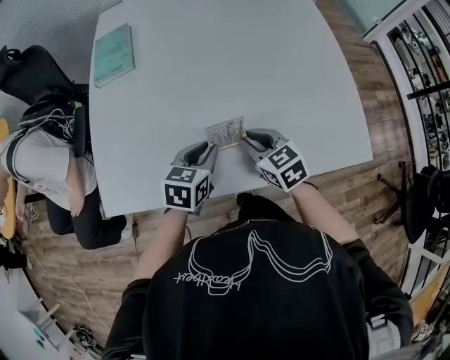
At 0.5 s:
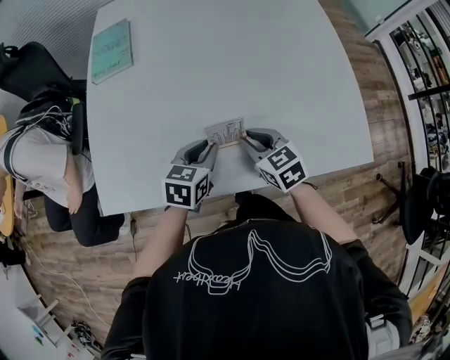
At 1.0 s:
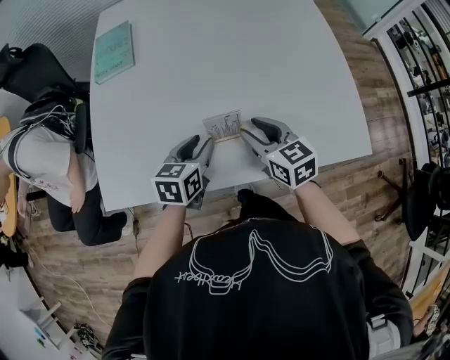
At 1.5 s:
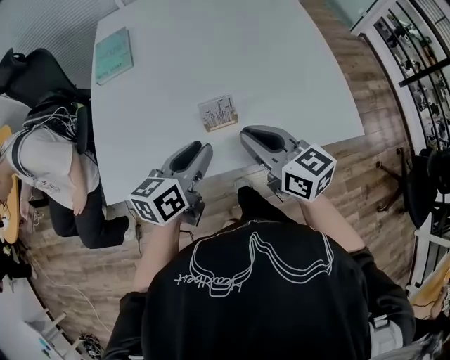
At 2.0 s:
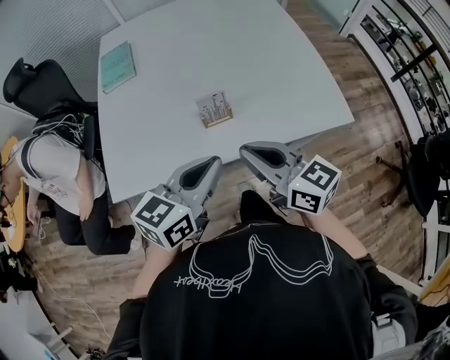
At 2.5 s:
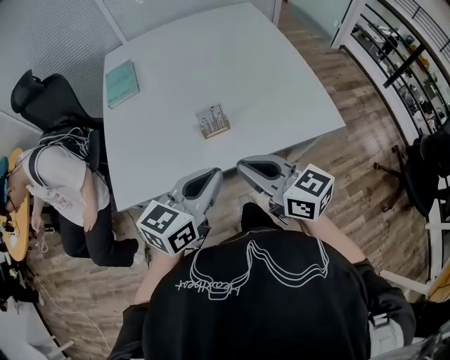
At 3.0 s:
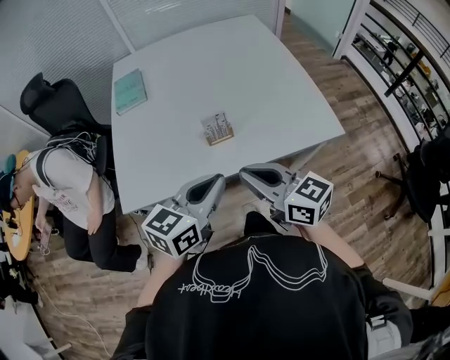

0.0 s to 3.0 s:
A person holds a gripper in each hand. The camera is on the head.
0.0 to 1.5 s: Both grippers travel together upward and backward, about 15 cm. The left gripper turns by about 30 degrees. The right gripper turns by approximately 30 degrees, and opens and closes again.
1.5 to 3.0 s: Both grippers travel together backward and upward, roughly 15 cm. The left gripper rotates roughly 20 degrees, and closes its fingers.

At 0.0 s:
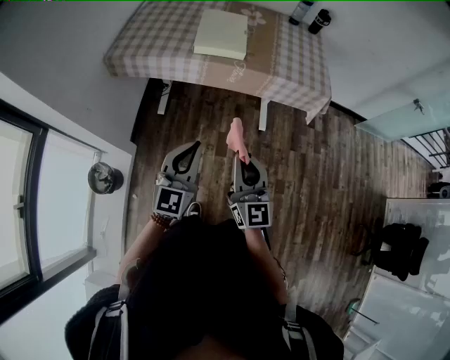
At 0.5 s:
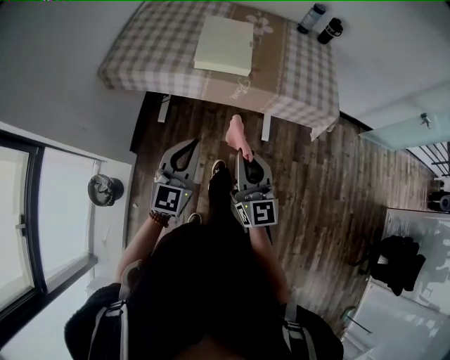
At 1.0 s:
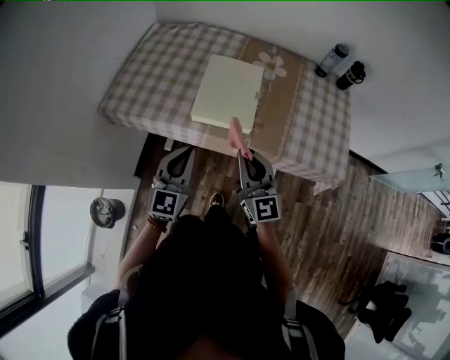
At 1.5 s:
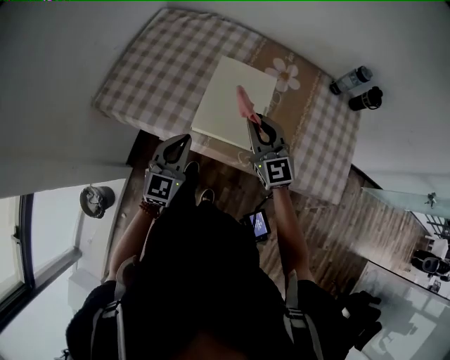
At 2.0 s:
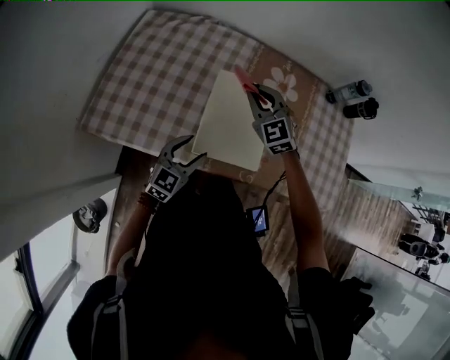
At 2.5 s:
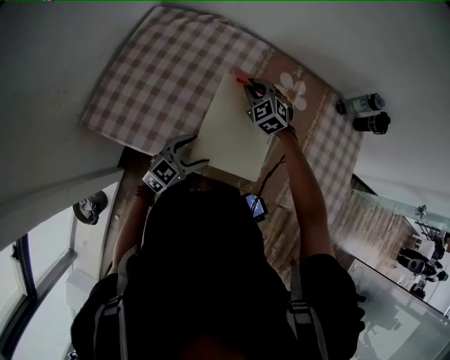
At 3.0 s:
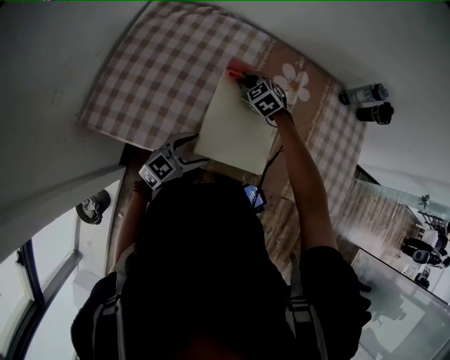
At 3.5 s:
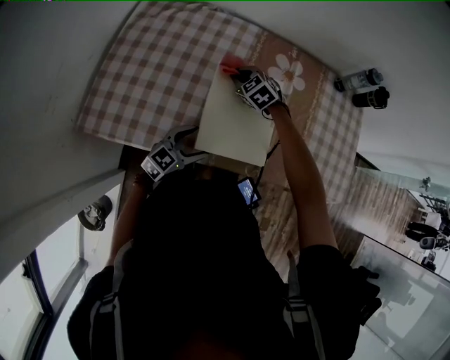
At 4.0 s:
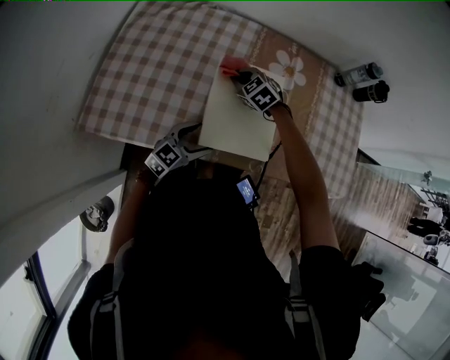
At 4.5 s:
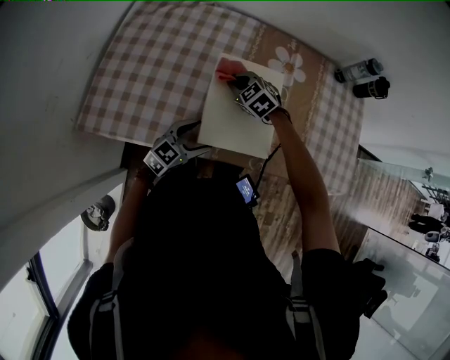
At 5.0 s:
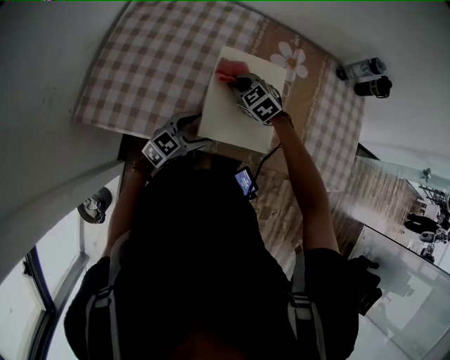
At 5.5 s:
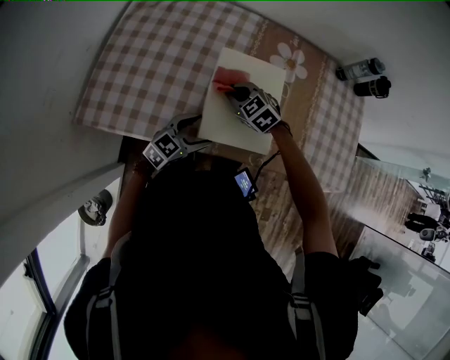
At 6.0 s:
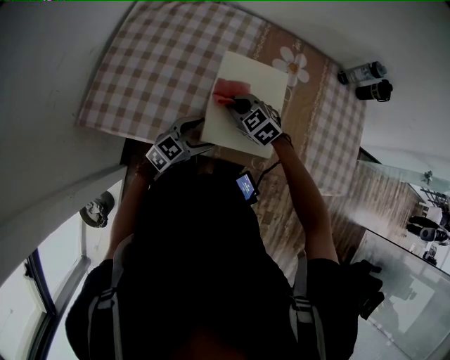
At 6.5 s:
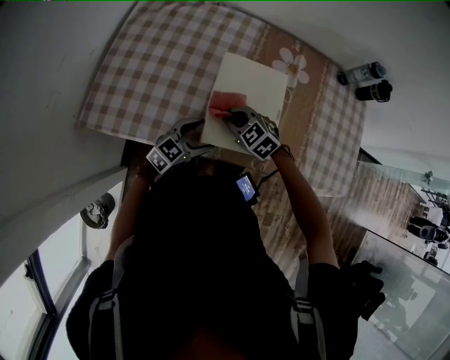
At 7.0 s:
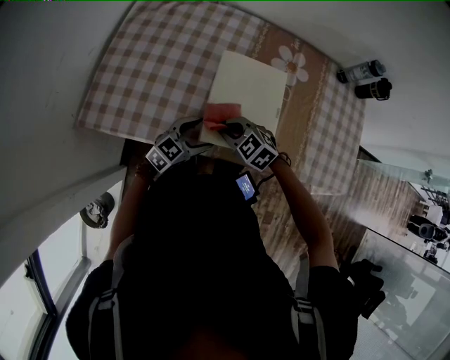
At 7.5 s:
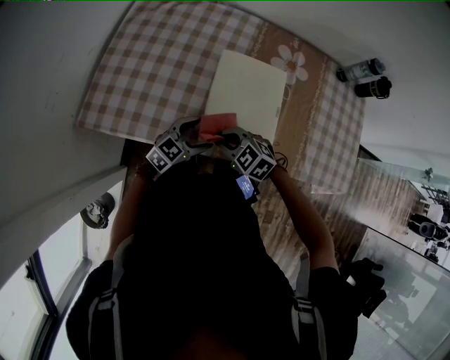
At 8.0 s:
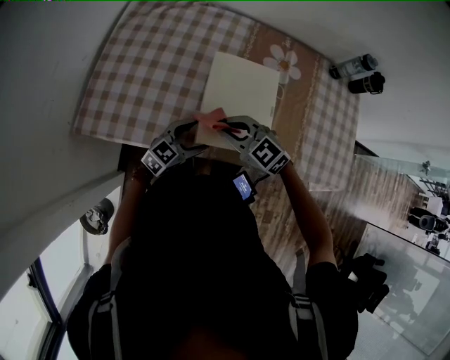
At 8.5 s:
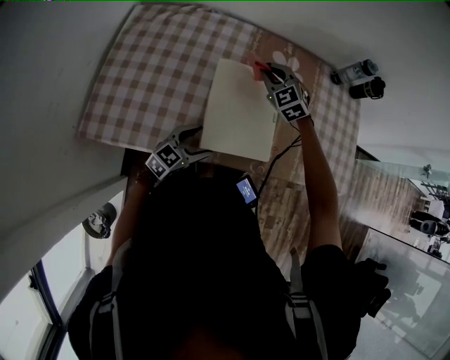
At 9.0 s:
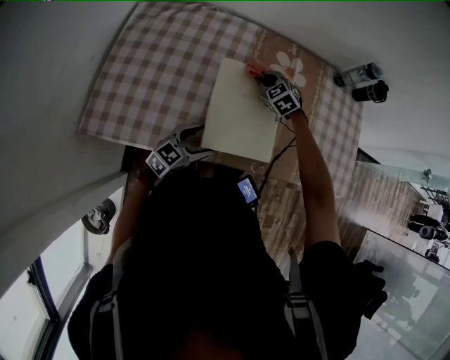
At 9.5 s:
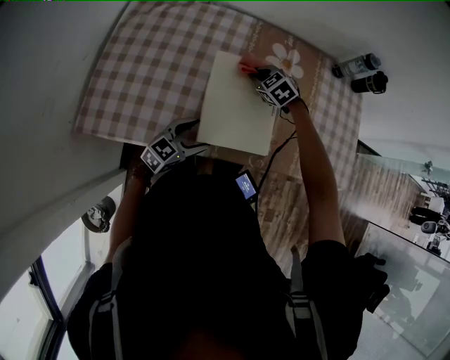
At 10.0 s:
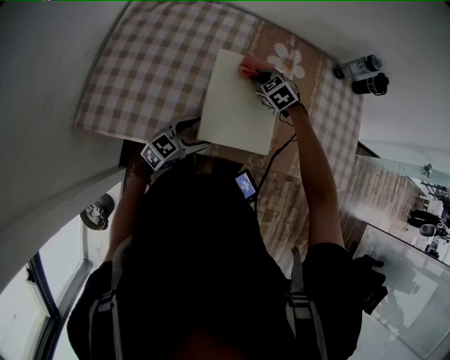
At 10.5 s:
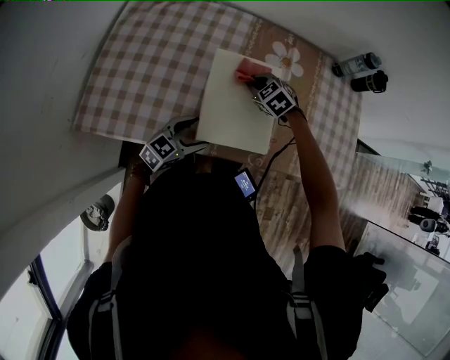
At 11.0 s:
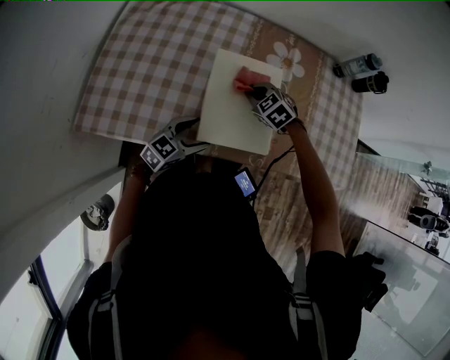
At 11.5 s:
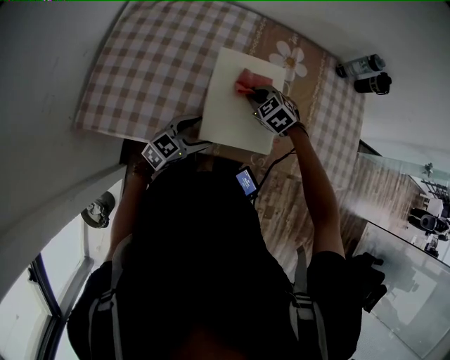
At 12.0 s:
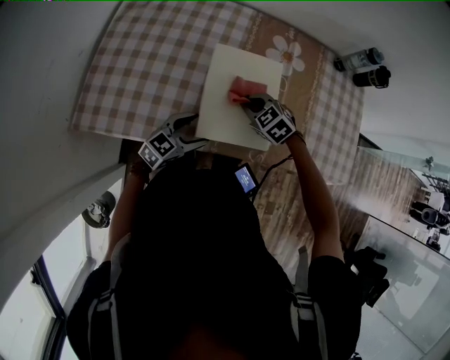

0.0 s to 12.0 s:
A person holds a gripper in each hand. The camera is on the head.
0.0 to 2.0 s: The two grippers travel together, forward, approximately 70 cm. The right gripper swivels approximately 50 degrees, while the left gripper swivels some 20 degrees, and opens its fingers.
2.0 to 4.0 s: The left gripper shifts roughly 5 cm downward, and swivels roughly 20 degrees; the right gripper is displaced downward by roughly 15 cm, and swivels roughly 30 degrees.
4.0 to 6.0 s: The right gripper moves backward, about 10 cm.
6.0 to 8.0 s: The right gripper ends up about 10 cm from where it was.
8.0 to 10.0 s: The right gripper goes roughly 20 cm forward and downward, and rotates roughly 30 degrees.
10.0 to 12.0 s: The right gripper shifts about 10 cm backward.

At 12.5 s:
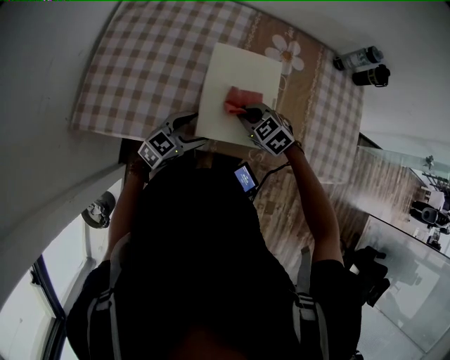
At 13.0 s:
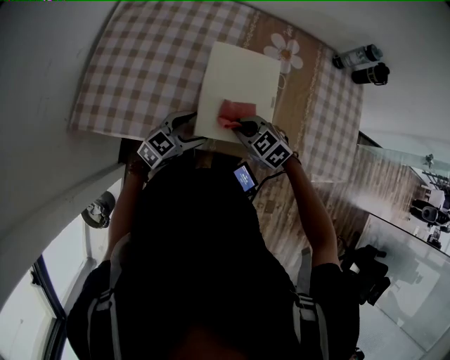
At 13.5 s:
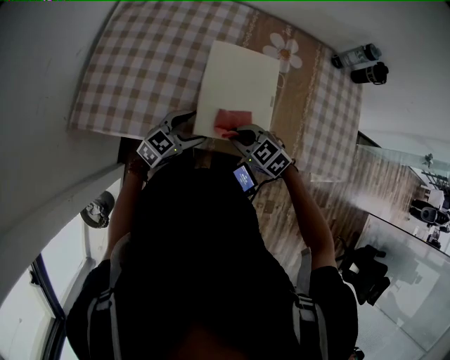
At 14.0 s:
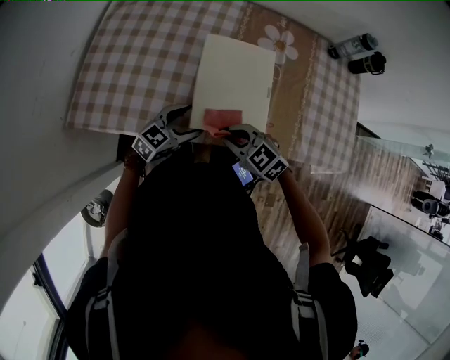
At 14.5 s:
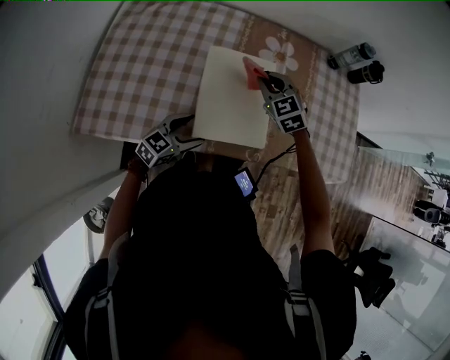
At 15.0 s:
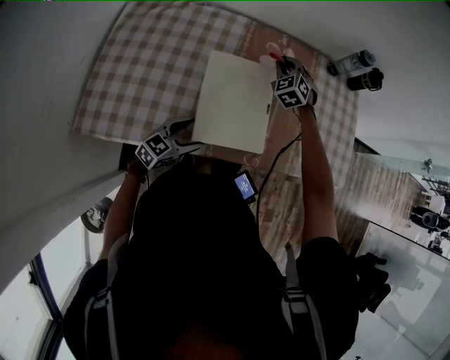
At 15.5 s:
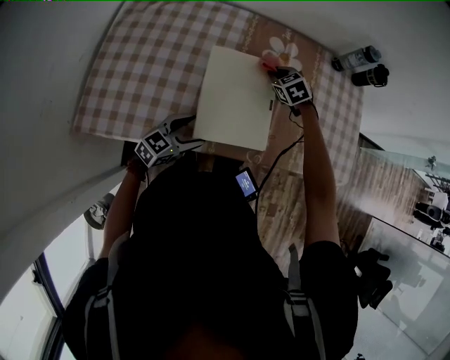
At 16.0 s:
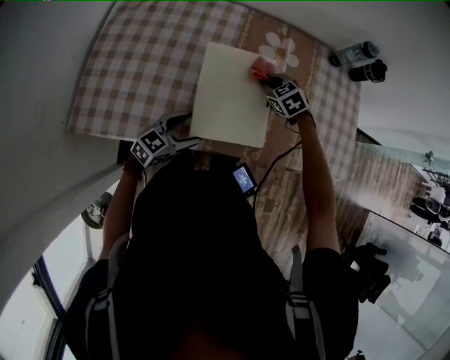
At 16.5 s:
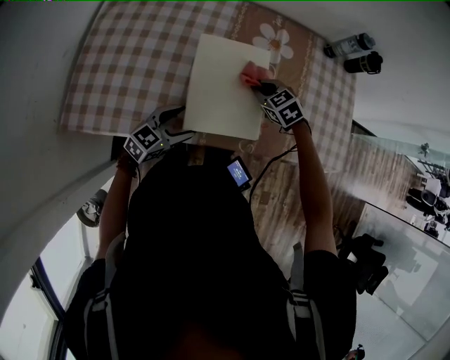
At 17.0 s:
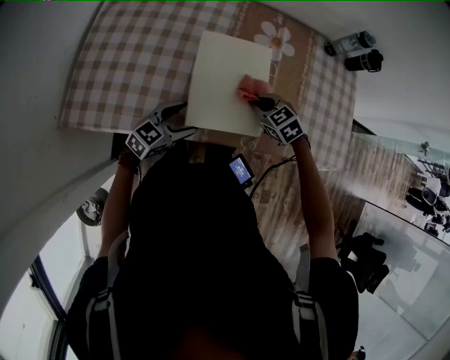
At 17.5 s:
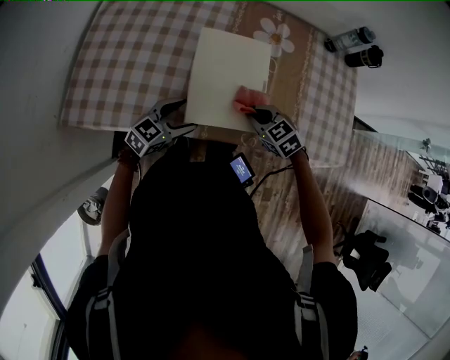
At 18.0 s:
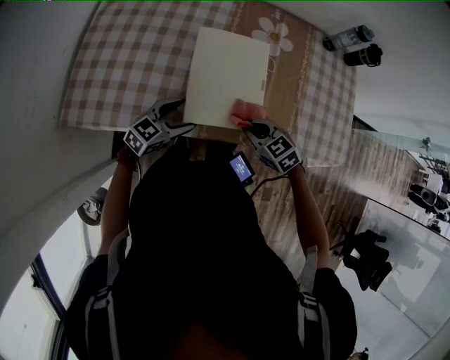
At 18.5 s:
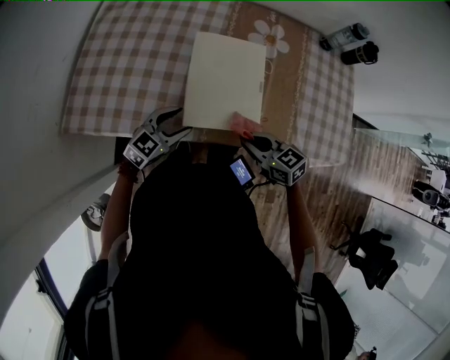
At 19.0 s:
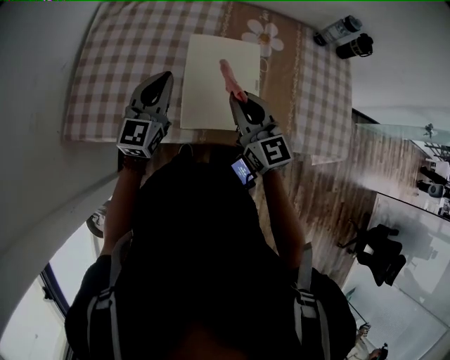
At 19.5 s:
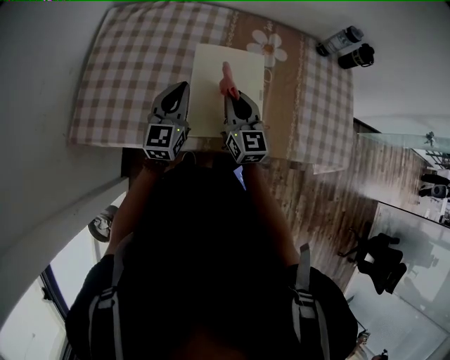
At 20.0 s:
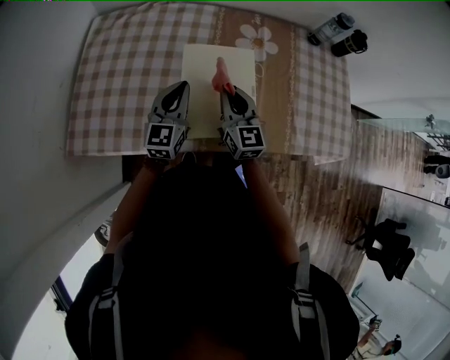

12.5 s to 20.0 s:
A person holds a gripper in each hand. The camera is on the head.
12.5 to 14.5 s: The right gripper is displaced forward and upward by some 15 cm, and turns by roughly 30 degrees.
14.5 to 16.5 s: The right gripper travels downward by some 10 cm, travels forward and back again, roughly 15 cm each way, and turns by some 20 degrees.
16.5 to 18.0 s: The right gripper shifts about 15 cm backward.
18.0 to 20.0 s: The left gripper heads upward and forward, covering roughly 15 cm, rotates some 40 degrees, and closes its fingers; the right gripper shifts about 15 cm forward, upward and to the left, and points its fingers some 40 degrees further upward.

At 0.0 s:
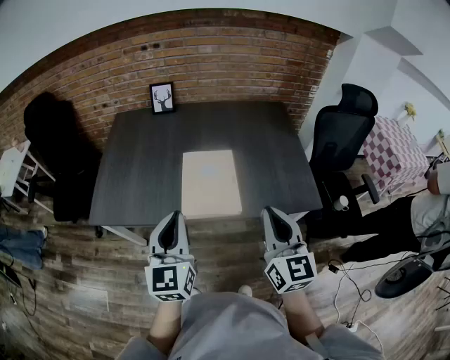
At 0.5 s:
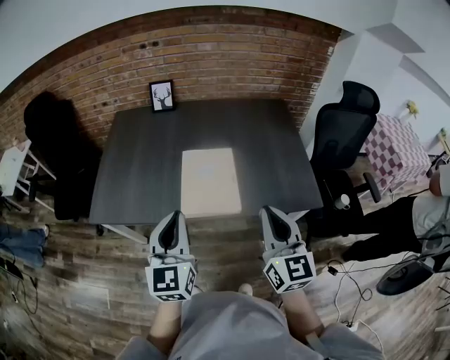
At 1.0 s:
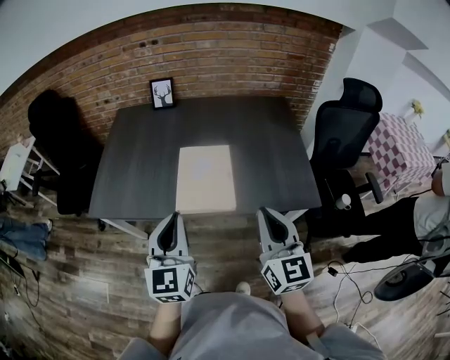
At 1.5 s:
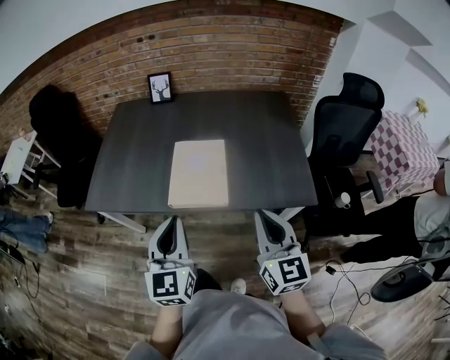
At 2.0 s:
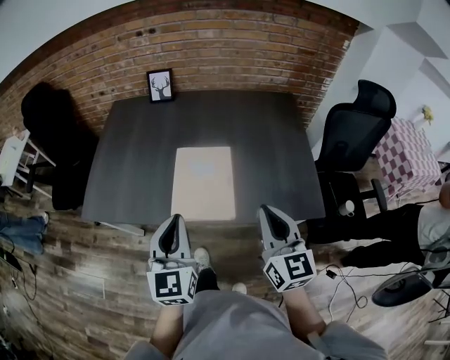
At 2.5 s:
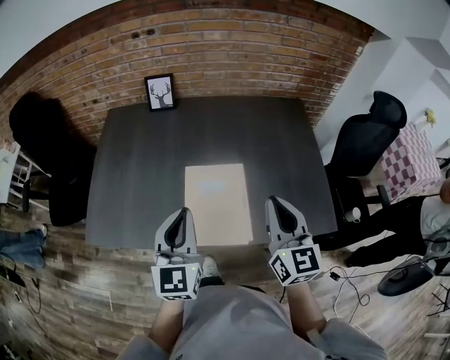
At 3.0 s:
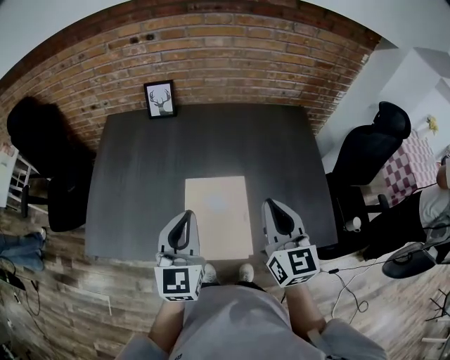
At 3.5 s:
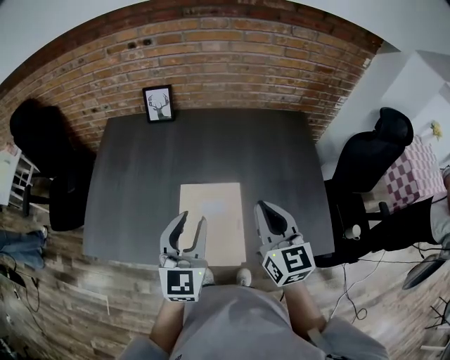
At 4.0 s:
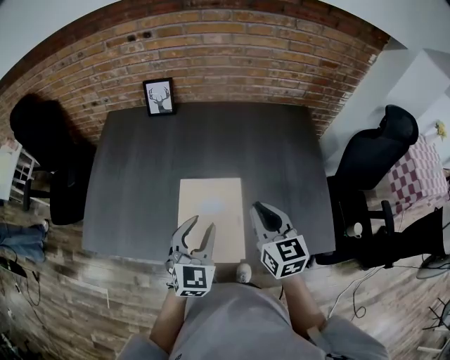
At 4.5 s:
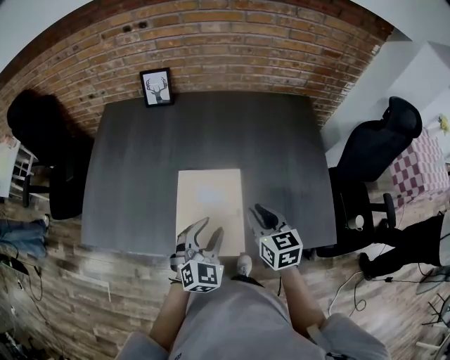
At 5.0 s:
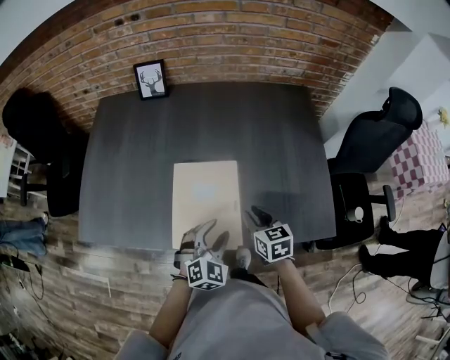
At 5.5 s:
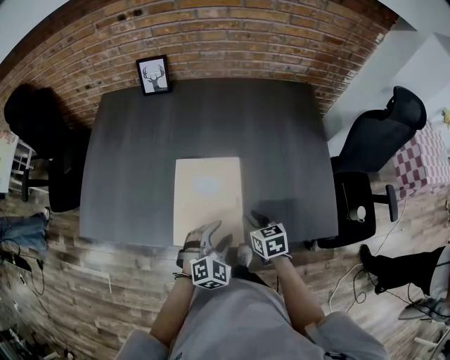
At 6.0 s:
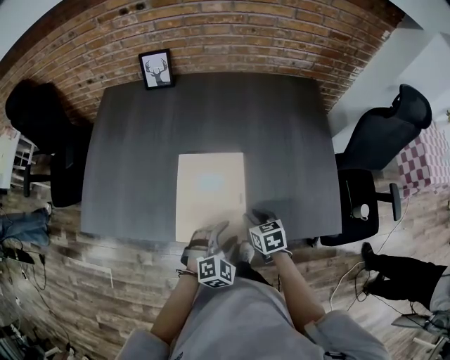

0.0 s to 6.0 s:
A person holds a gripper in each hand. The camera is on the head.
0.0 to 2.0 s: The right gripper is displaced forward by roughly 5 cm. Meanwhile the left gripper heads to the right, covering some 5 cm.
2.0 to 4.0 s: The right gripper is displaced forward by about 20 cm. The left gripper travels forward and downward by some 20 cm, changes its angle by roughly 20 degrees, and opens up.
4.0 to 6.0 s: The right gripper goes roughly 25 cm downward, angles its fingers downward, by approximately 30 degrees, and opens its fingers; the left gripper travels downward, backward and to the right by about 20 cm, swivels roughly 40 degrees, and opens its fingers.
